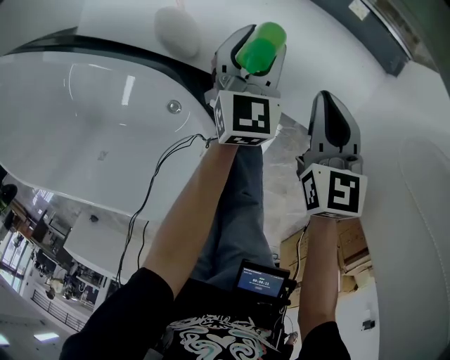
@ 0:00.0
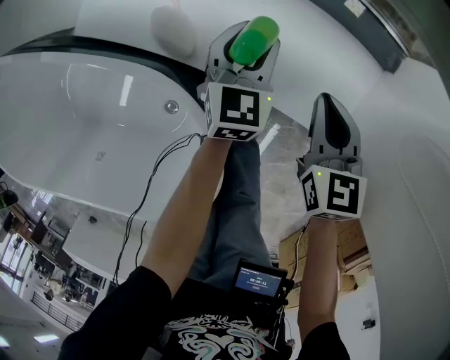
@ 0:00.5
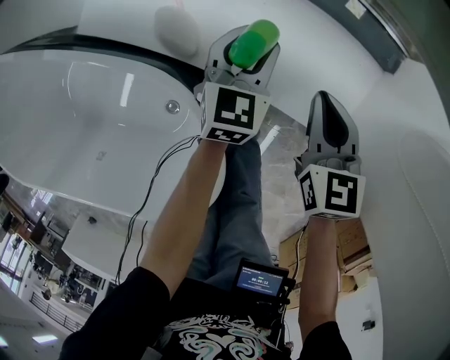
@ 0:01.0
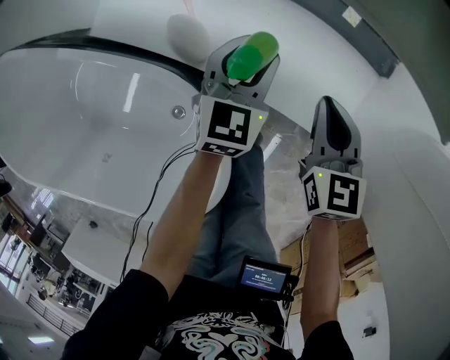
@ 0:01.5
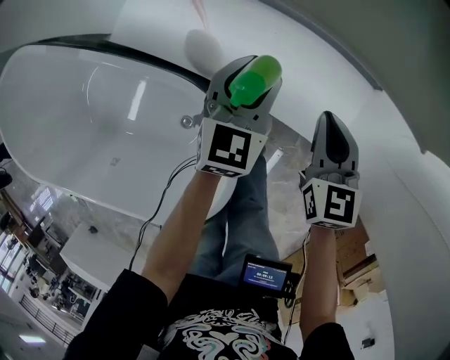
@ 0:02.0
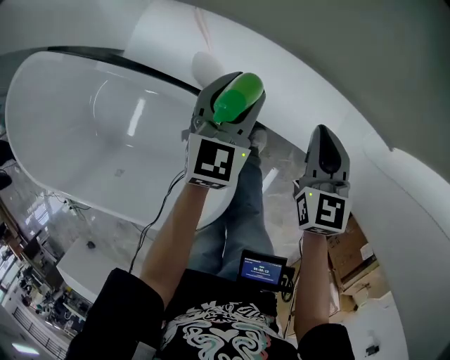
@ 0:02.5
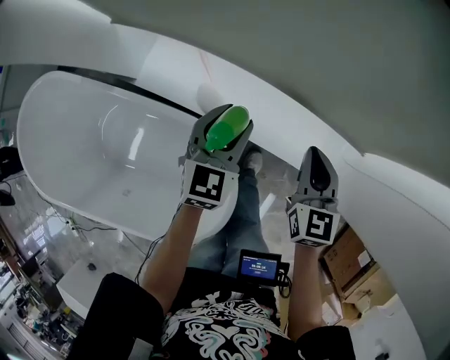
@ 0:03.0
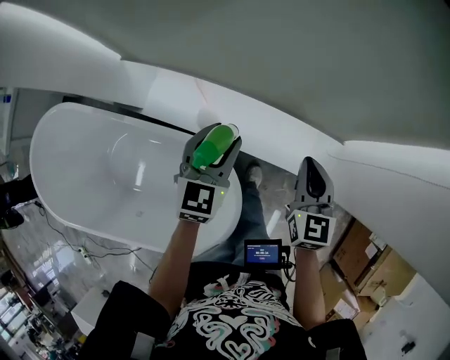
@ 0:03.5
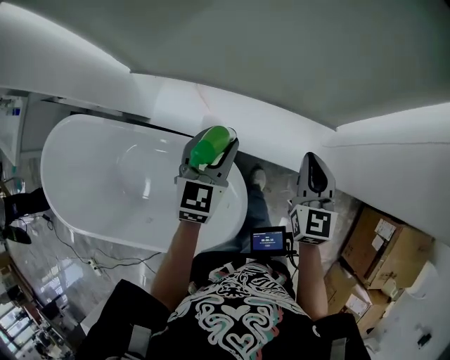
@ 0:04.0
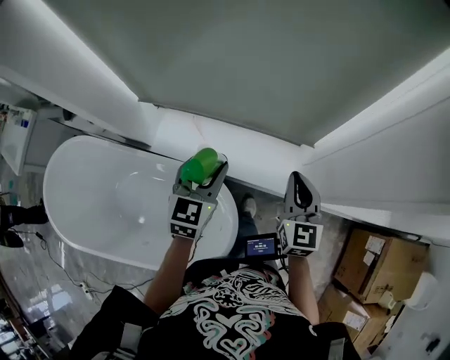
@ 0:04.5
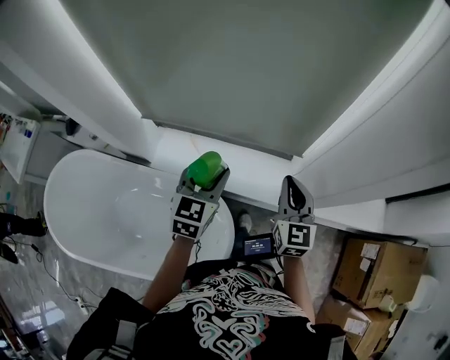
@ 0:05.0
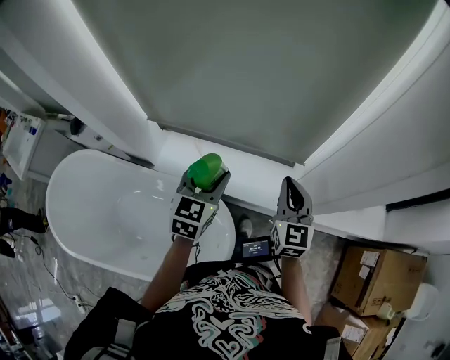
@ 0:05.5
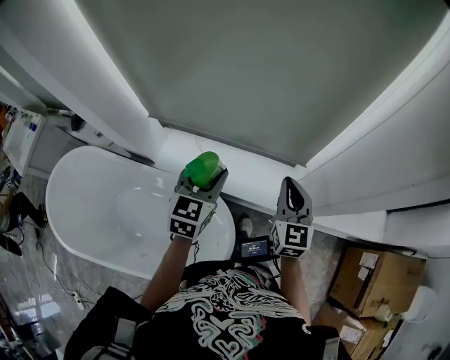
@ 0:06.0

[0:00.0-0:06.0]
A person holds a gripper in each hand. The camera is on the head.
0:00.0 to 0:02.0: The right gripper is displaced upward by roughly 5 cm, while the left gripper goes some 10 cm upward.
0:02.0 to 0:04.0: The grippers both shift upward by roughly 30 cm. The right gripper turns by approximately 20 degrees.
0:04.0 to 0:06.0: The right gripper travels upward by about 10 cm; the left gripper is displaced upward and backward by approximately 15 cm.

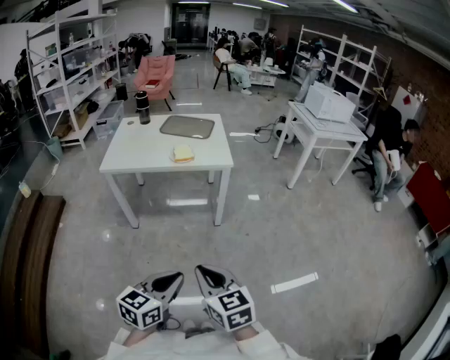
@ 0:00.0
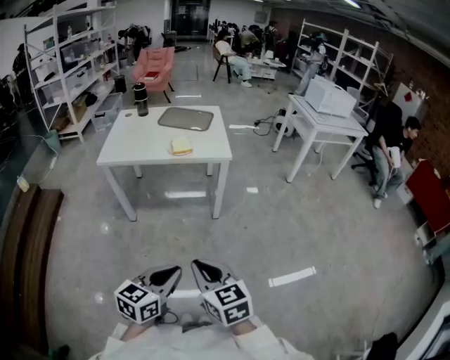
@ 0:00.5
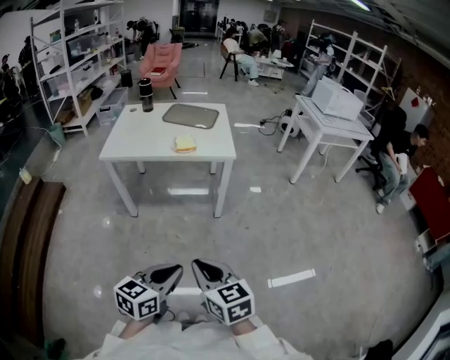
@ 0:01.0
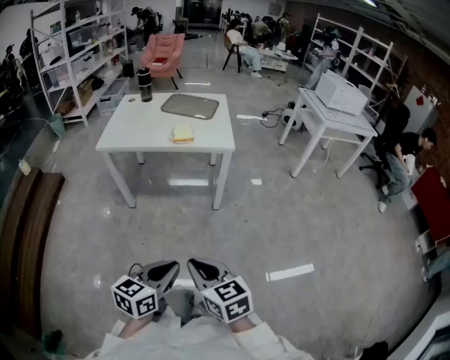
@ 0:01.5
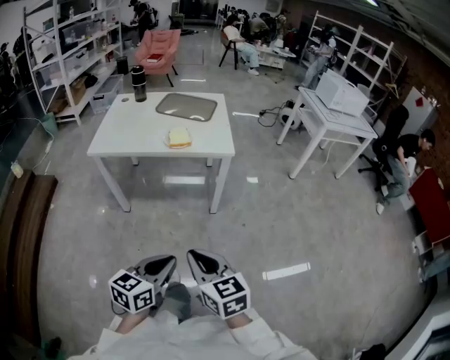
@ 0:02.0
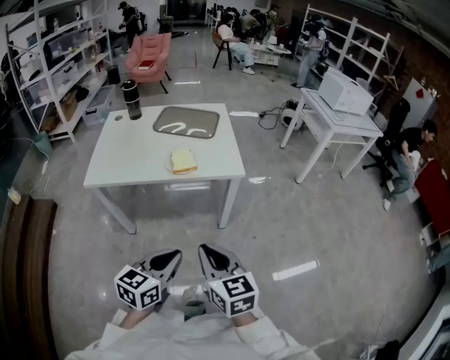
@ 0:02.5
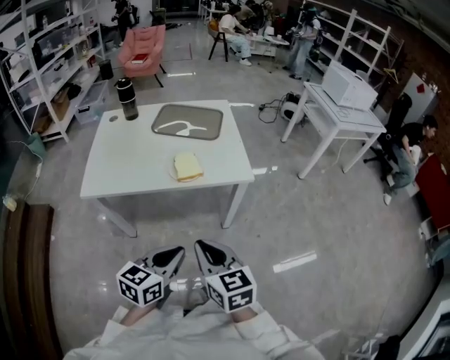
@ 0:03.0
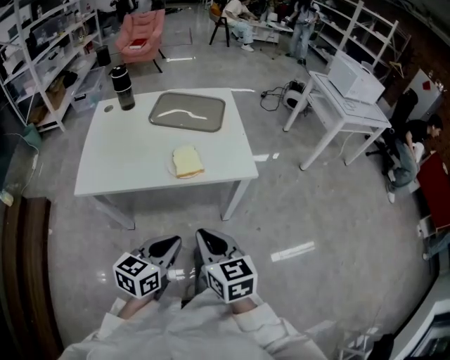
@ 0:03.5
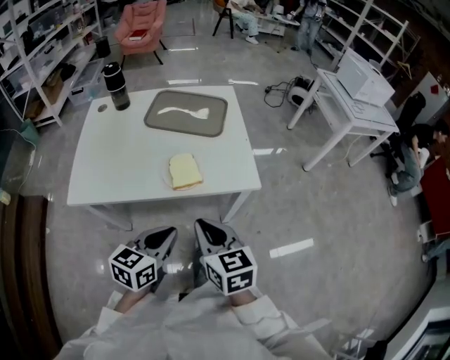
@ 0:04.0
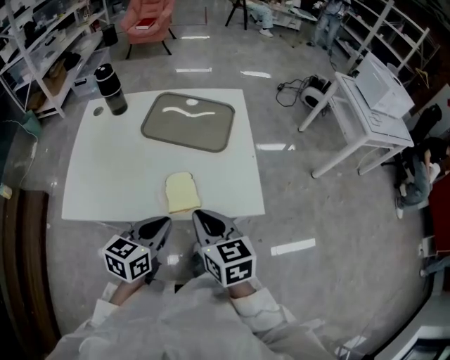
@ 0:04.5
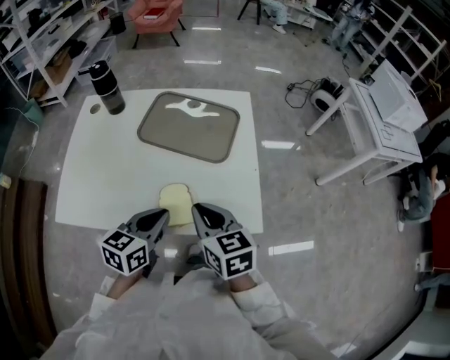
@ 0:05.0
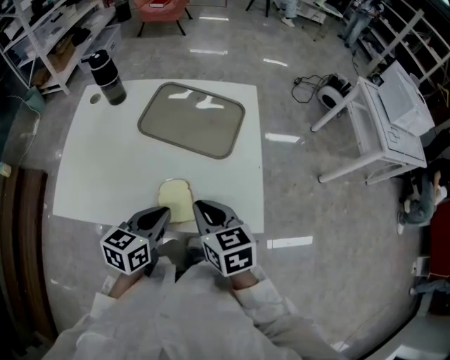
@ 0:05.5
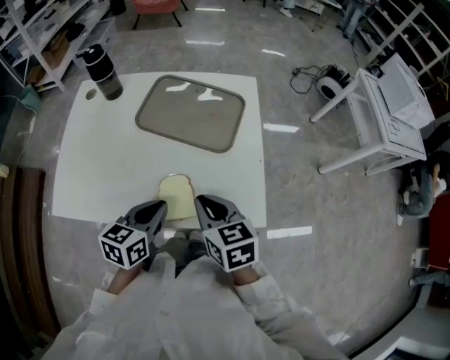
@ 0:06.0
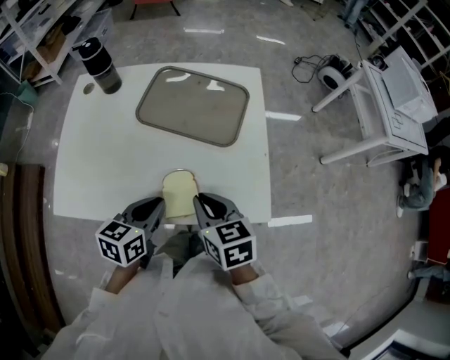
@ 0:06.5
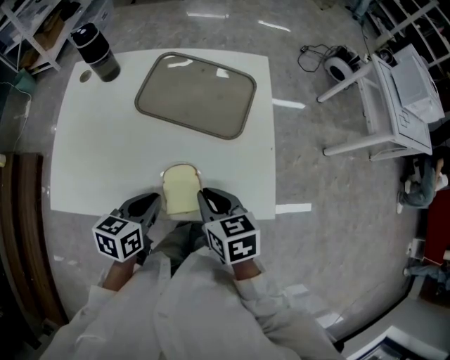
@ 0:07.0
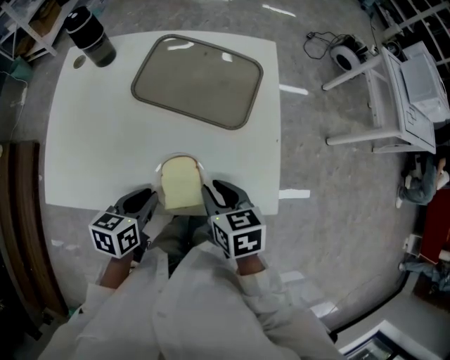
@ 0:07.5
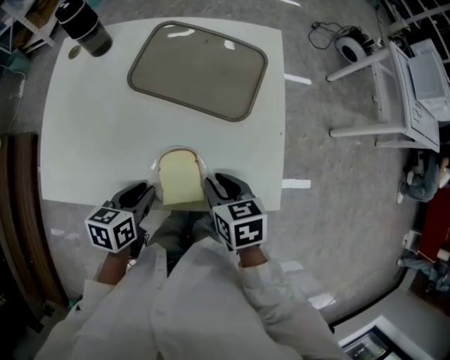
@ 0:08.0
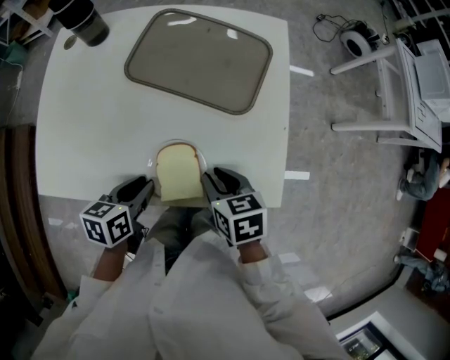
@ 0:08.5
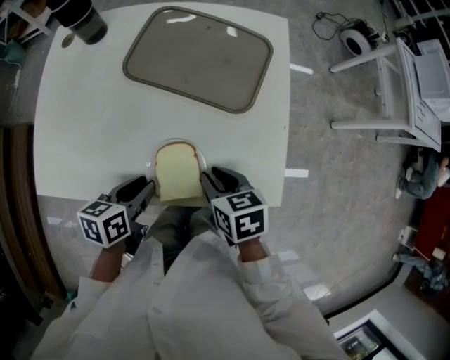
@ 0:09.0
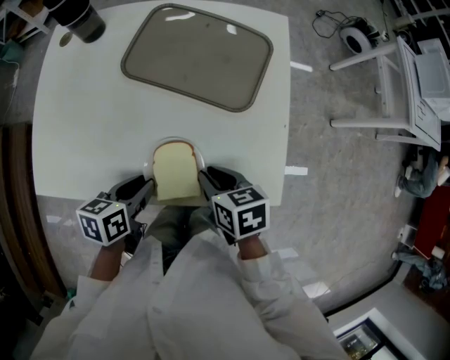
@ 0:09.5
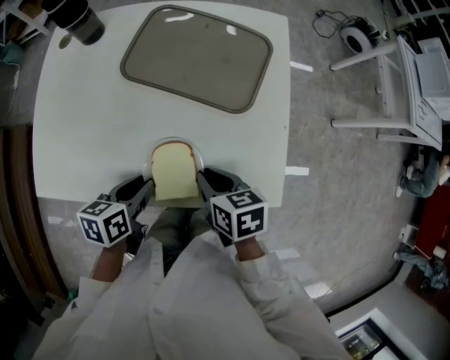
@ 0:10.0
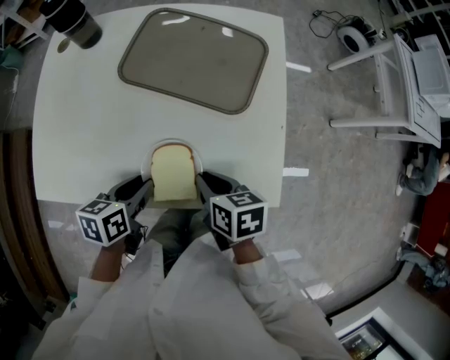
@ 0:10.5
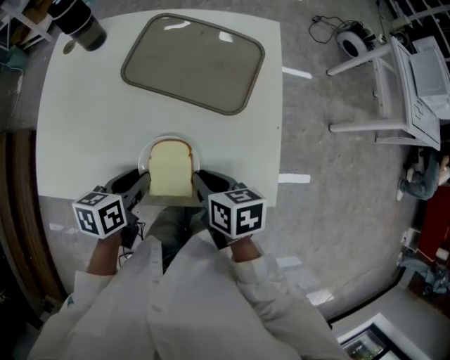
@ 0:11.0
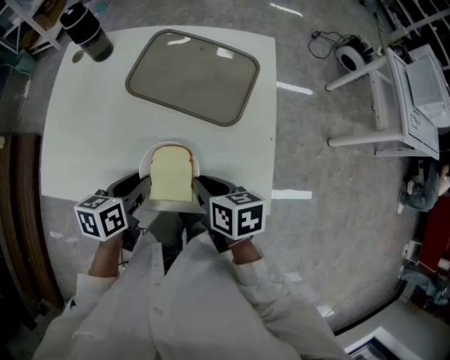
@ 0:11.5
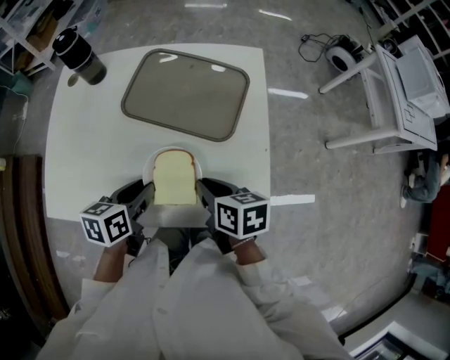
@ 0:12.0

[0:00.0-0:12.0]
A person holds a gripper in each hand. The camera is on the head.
0:00.0 to 0:02.0: Both grippers move forward, roughly 10 cm.
0:02.0 to 0:04.0: The two grippers travel together, forward, roughly 40 cm.
0:04.0 to 0:06.0: The two grippers go approximately 25 cm forward.
0:06.0 to 0:08.0: The right gripper heads downward, covering roughly 10 cm, while the left gripper goes approximately 10 cm downward and to the left.
0:08.0 to 0:10.0: The grippers move only a little.
0:10.0 to 0:12.0: The two grippers go roughly 5 cm upward.

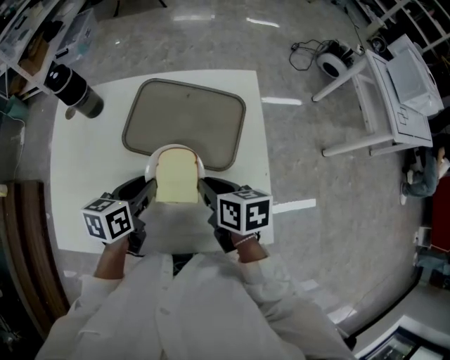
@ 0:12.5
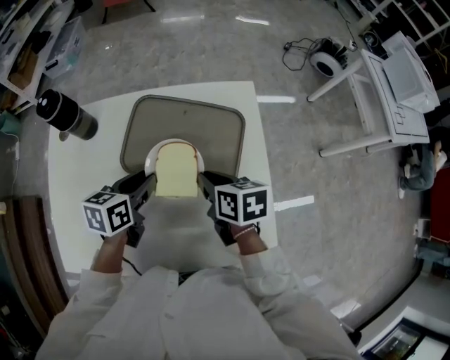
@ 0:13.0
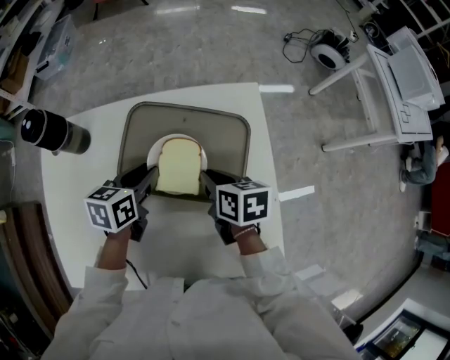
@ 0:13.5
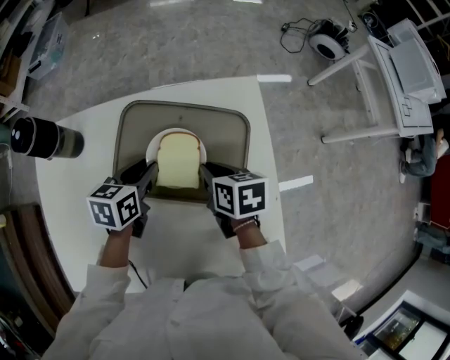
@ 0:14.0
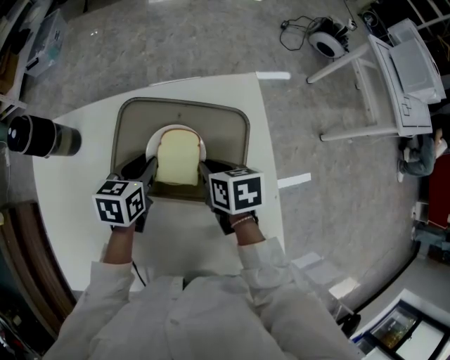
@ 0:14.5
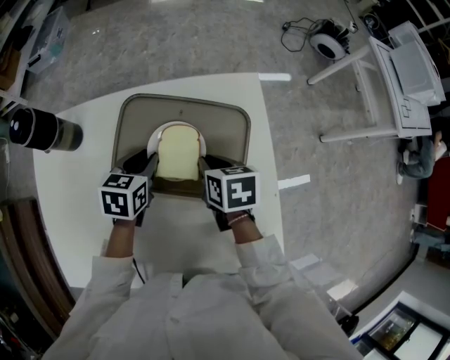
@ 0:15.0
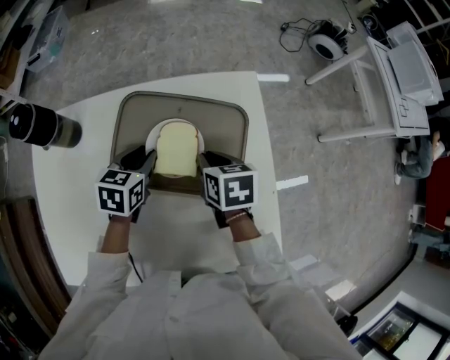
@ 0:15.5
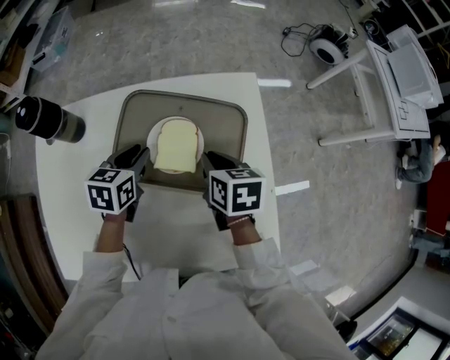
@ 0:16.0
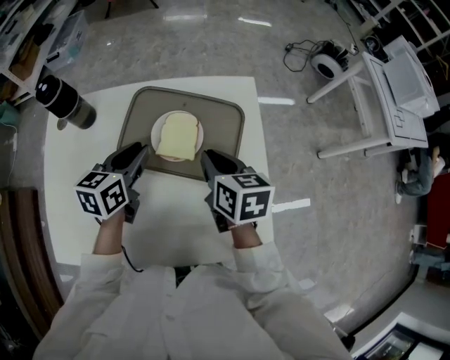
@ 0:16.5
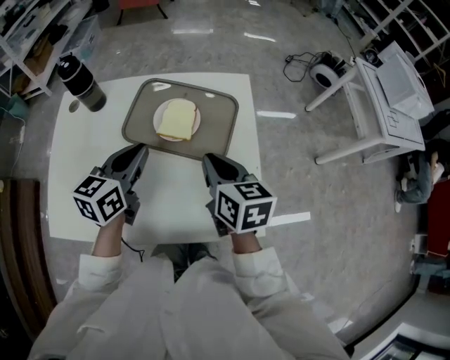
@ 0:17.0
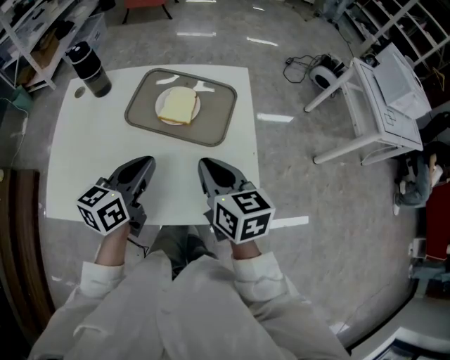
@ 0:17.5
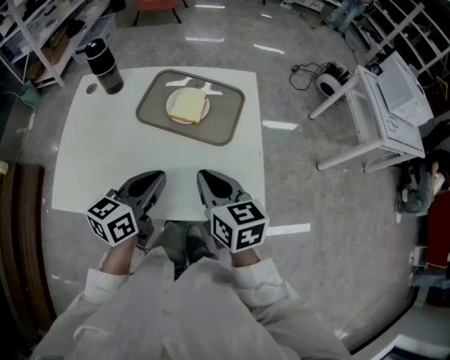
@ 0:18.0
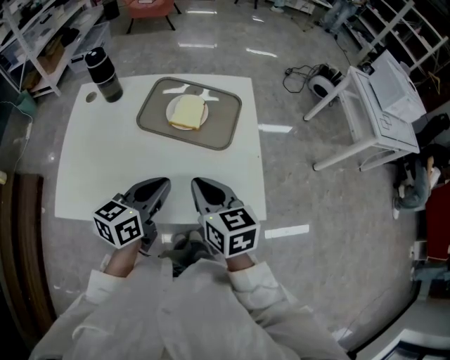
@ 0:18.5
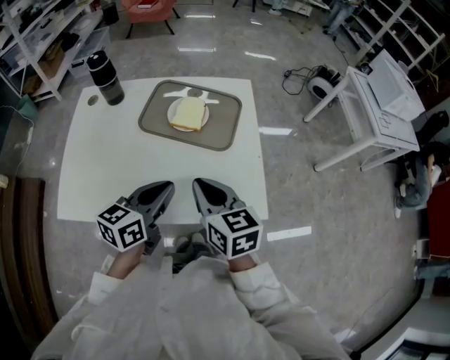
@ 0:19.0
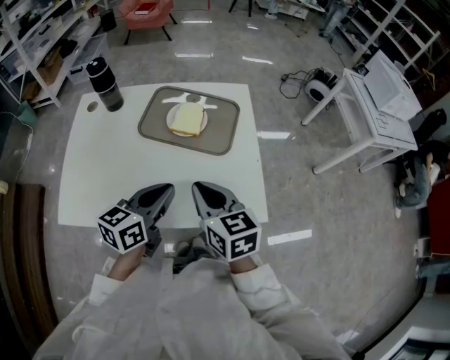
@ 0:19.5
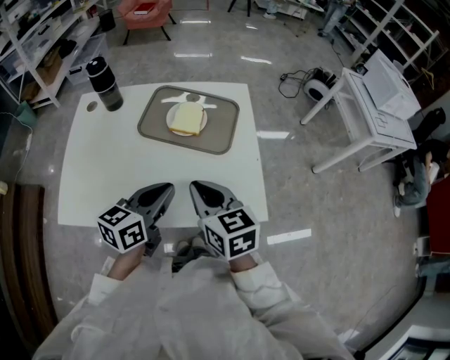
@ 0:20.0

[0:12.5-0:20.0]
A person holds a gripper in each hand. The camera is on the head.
0:12.5 to 0:14.5: The left gripper shifts roughly 20 cm forward, while the right gripper goes some 20 cm forward and downward.
0:14.5 to 0:16.5: Both grippers travel together upward and backward, approximately 10 cm.
0:16.5 to 0:18.0: The grippers both shift backward by roughly 25 cm. The left gripper closes up.
0:18.0 to 0:20.0: The grippers make only small movements.

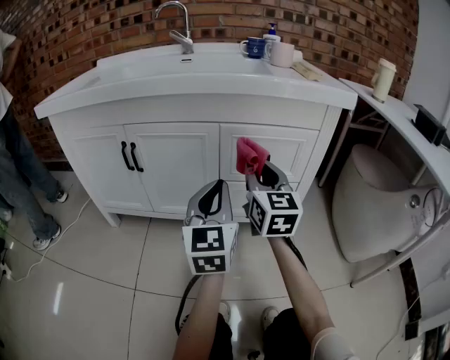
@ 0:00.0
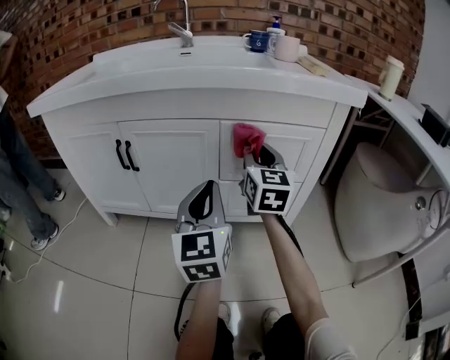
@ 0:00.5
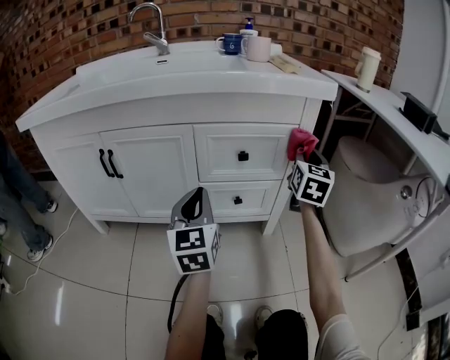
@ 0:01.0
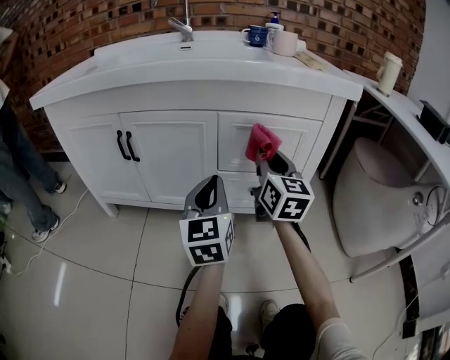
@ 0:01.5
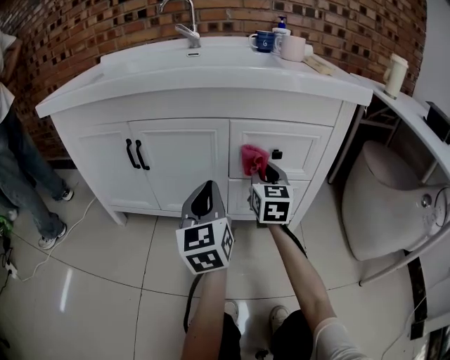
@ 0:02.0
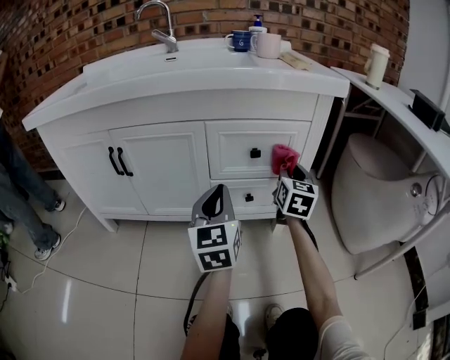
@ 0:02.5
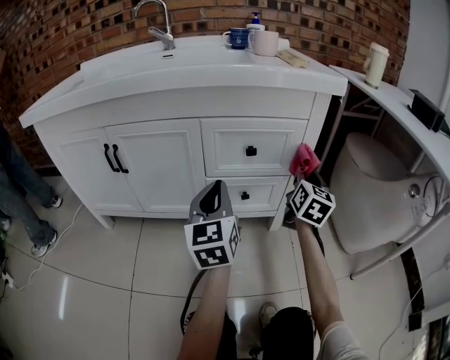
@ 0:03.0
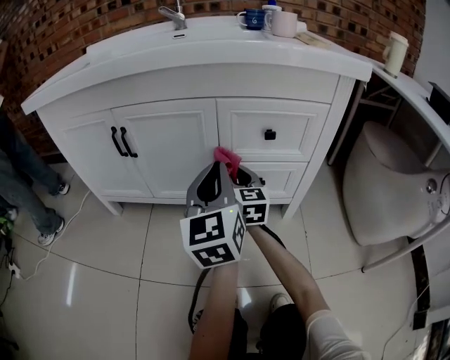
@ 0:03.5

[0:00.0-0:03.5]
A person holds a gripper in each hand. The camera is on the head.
0:00.0 to 0:02.0: The left gripper travels to the left by about 5 cm. The right gripper moves downward and forward, about 10 cm, and reaches approximately 25 cm to the right, then returns.
0:02.0 to 0:03.5: The right gripper goes some 10 cm downward, and reaches roughly 20 cm to the right, then returns.
